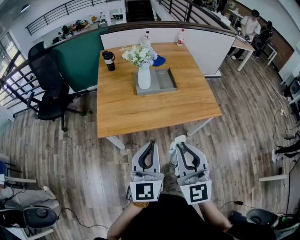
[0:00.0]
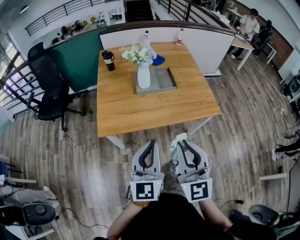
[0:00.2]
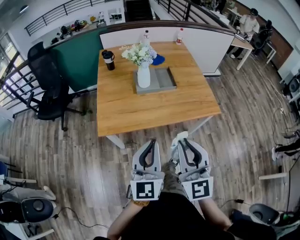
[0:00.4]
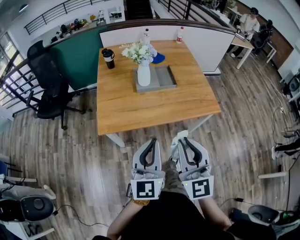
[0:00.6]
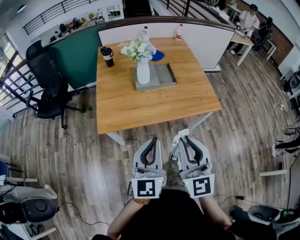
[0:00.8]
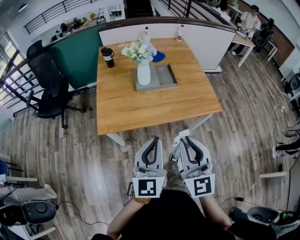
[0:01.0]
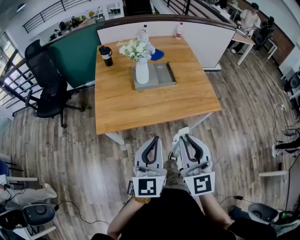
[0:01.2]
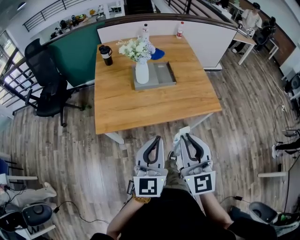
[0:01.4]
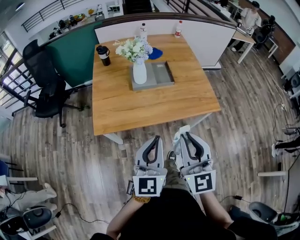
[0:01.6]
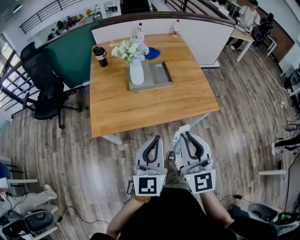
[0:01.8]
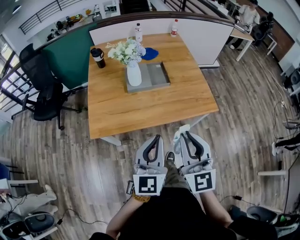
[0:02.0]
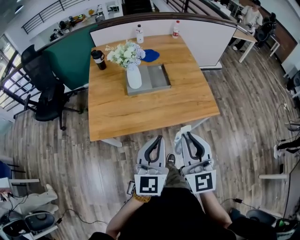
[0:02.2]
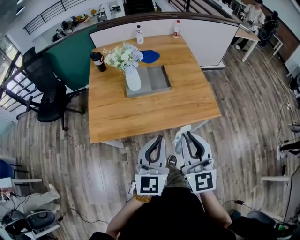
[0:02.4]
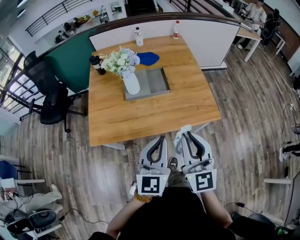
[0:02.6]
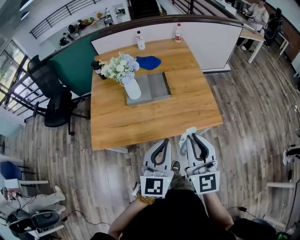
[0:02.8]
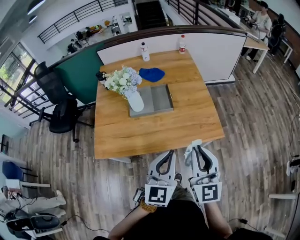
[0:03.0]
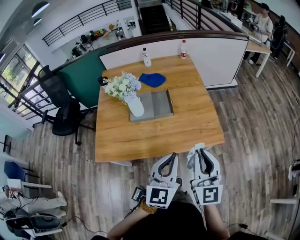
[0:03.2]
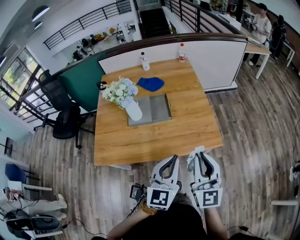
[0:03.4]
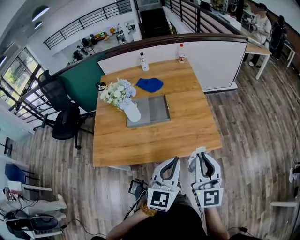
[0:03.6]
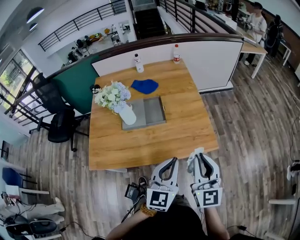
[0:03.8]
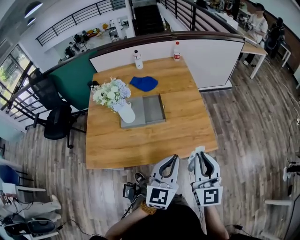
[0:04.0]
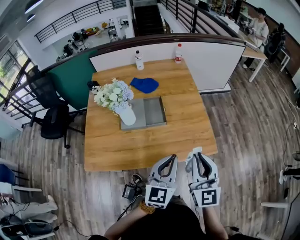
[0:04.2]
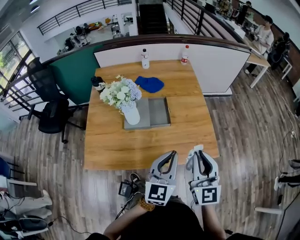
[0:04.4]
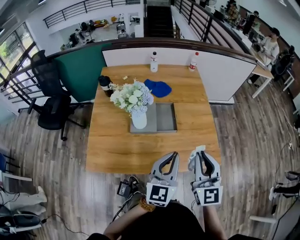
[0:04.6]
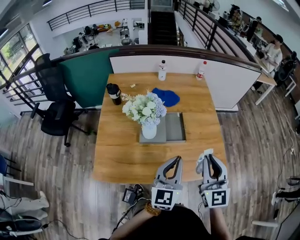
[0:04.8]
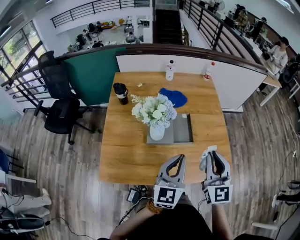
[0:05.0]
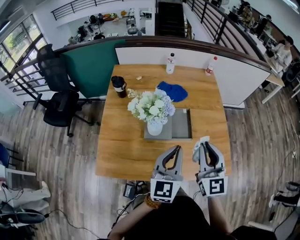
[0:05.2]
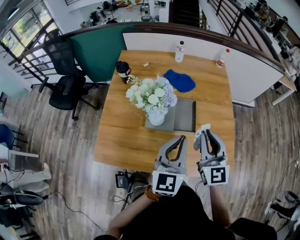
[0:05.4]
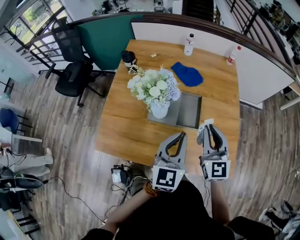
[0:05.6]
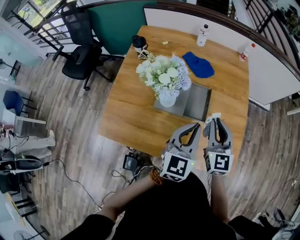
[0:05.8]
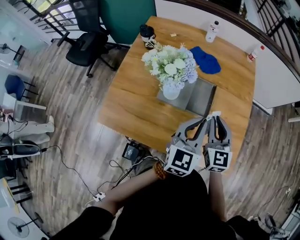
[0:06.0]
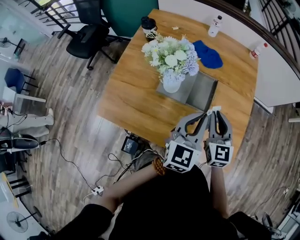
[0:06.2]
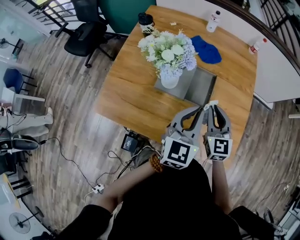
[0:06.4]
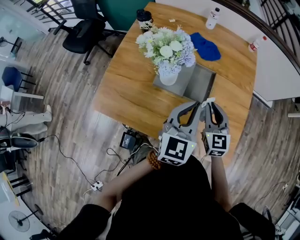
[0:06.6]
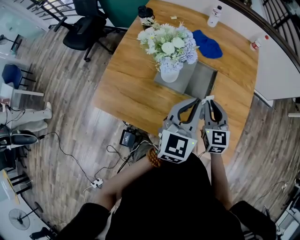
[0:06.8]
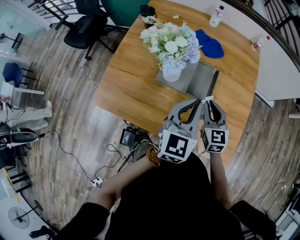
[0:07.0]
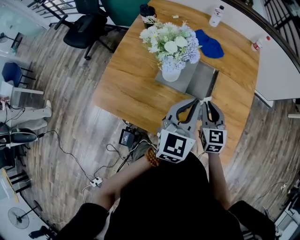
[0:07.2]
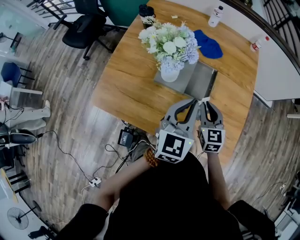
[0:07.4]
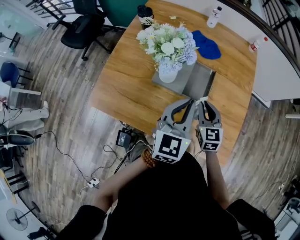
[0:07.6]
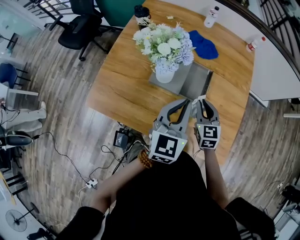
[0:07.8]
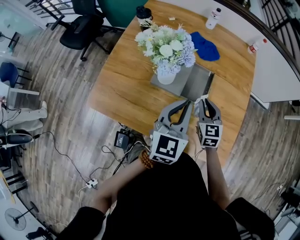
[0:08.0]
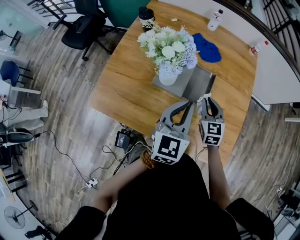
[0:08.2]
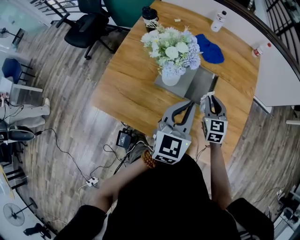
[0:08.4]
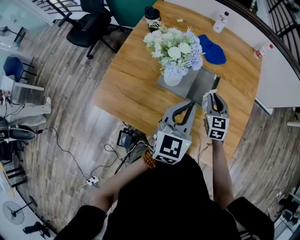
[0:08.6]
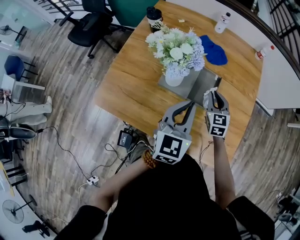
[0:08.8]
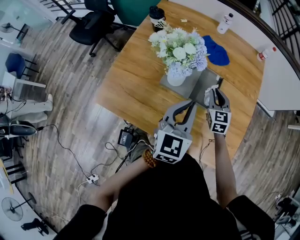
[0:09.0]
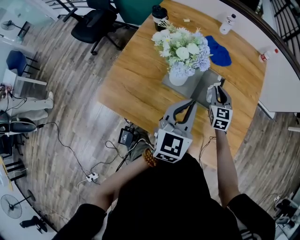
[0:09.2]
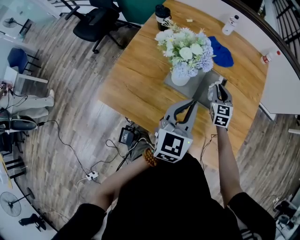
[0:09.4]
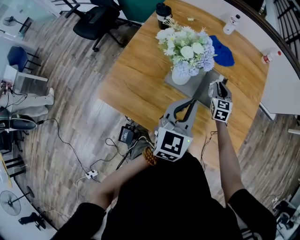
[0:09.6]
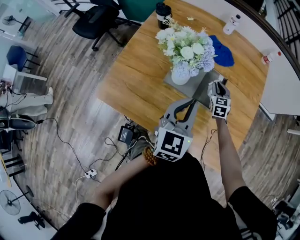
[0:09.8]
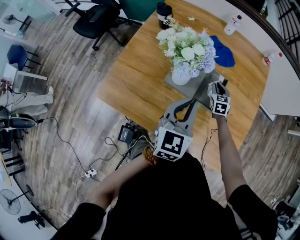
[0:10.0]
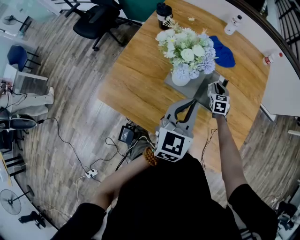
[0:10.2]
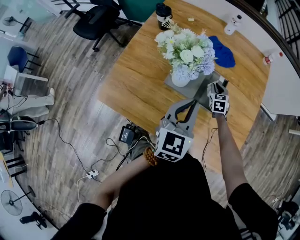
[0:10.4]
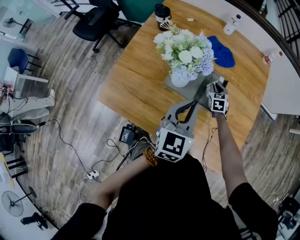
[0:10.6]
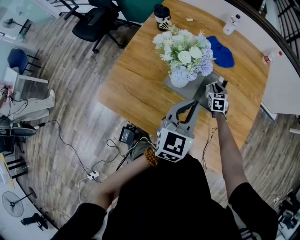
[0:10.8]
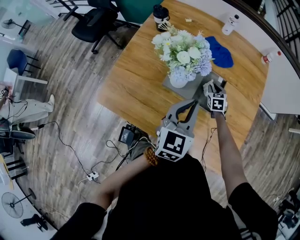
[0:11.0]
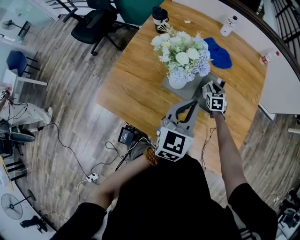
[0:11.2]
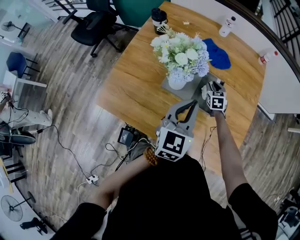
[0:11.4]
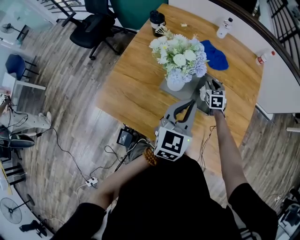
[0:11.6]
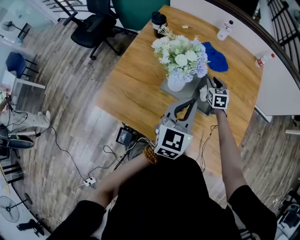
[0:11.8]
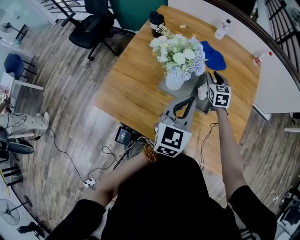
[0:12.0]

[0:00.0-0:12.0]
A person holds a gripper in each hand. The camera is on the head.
0.0 to 1.6 s: The right gripper ends up some 5 cm from where it was. Meanwhile the left gripper changes place by some 5 cm.
1.6 to 3.0 s: The grippers both shift to the right and forward by about 20 cm.
3.0 to 4.4 s: The grippers both shift forward by about 10 cm.
4.4 to 6.0 s: The left gripper goes some 20 cm forward. Meanwhile the right gripper travels forward and downward by some 25 cm, and rotates some 20 degrees.
6.0 to 7.6 s: The right gripper heads downward, covering about 10 cm.
7.6 to 9.0 s: The right gripper goes approximately 10 cm forward.
9.0 to 10.4 s: The right gripper travels downward and forward by some 15 cm.
10.4 to 12.0 s: The right gripper travels upward by roughly 15 cm.

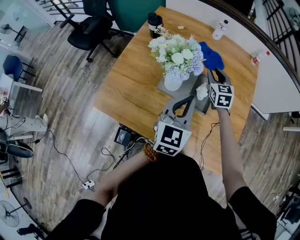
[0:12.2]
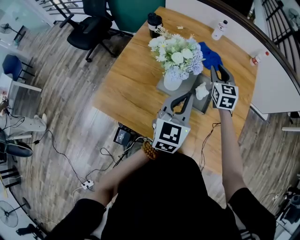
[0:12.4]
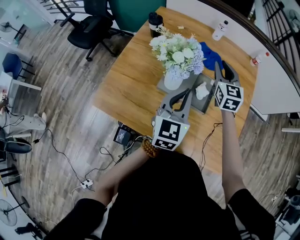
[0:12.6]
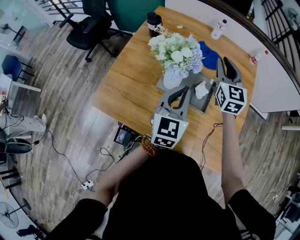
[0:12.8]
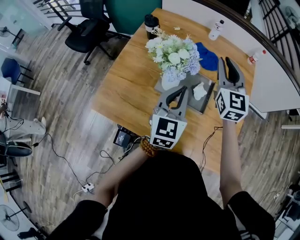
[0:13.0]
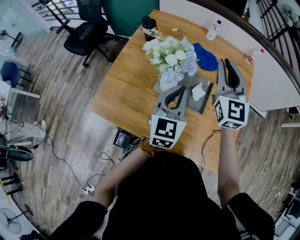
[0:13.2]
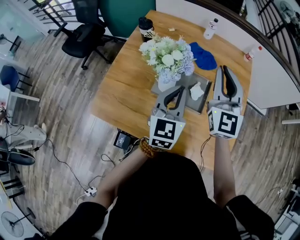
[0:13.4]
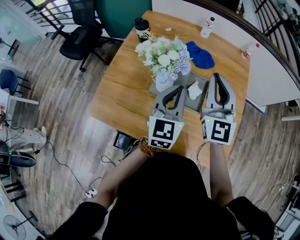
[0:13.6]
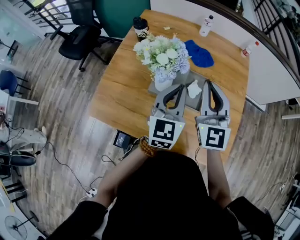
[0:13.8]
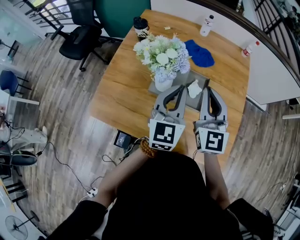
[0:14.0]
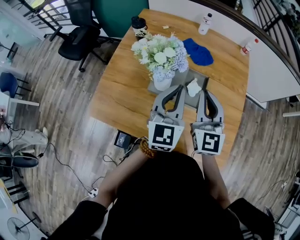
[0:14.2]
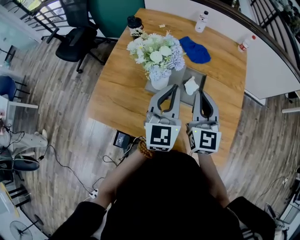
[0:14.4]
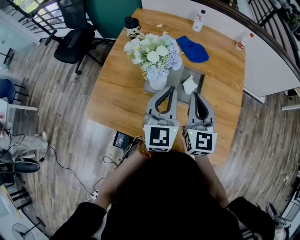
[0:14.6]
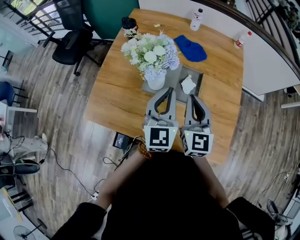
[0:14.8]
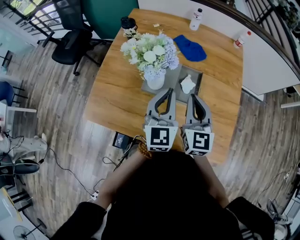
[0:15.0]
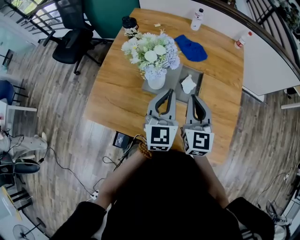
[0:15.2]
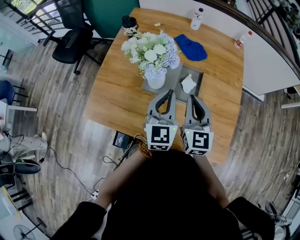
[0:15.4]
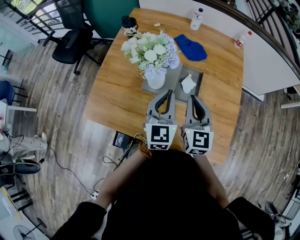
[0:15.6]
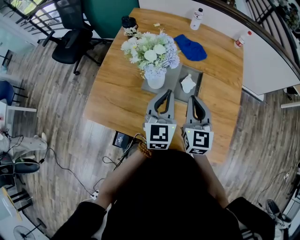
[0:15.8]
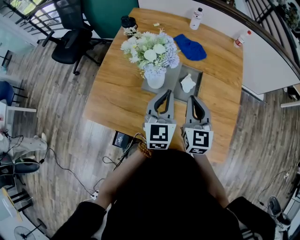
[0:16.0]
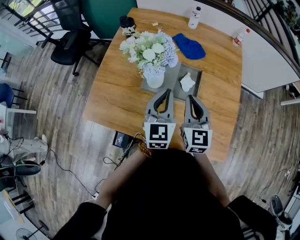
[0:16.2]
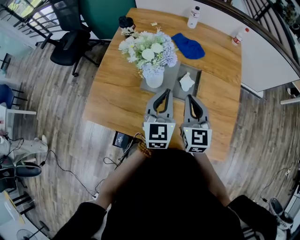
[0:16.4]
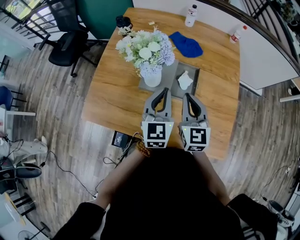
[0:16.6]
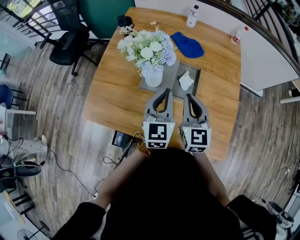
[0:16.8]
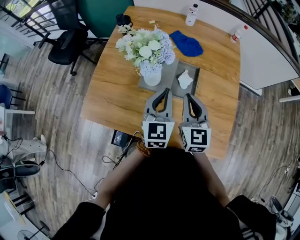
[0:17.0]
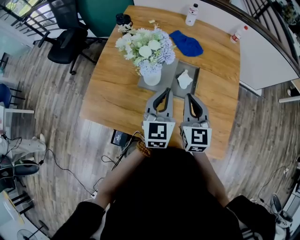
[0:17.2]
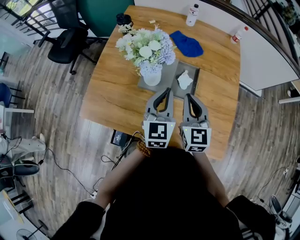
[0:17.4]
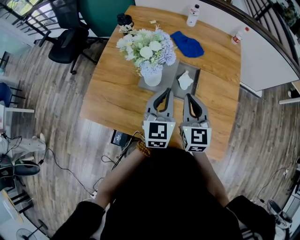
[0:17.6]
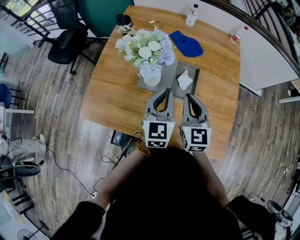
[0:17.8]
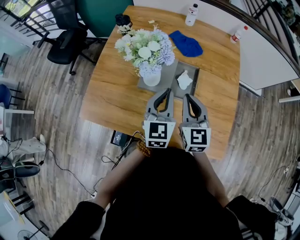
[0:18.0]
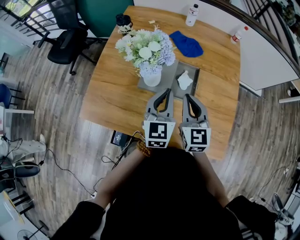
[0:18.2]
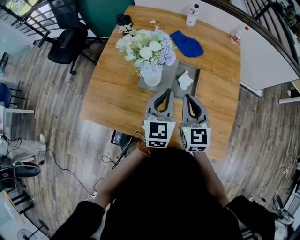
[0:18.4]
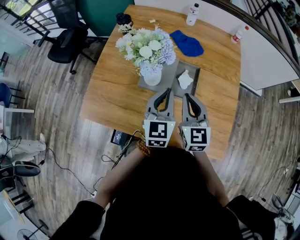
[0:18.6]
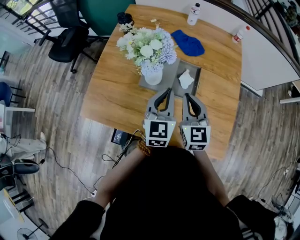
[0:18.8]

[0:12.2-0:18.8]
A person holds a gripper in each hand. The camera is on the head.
12.2 to 13.8 s: The right gripper shifts roughly 25 cm upward and backward, angles its fingers upward, by roughly 30 degrees, and closes up.
13.8 to 15.4 s: The left gripper changes place by roughly 5 cm. The right gripper shifts some 10 cm downward.
15.4 to 18.8 s: There are only small adjustments of the grippers.

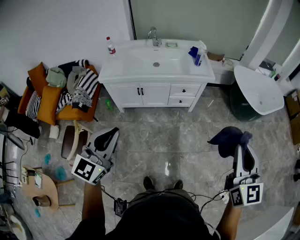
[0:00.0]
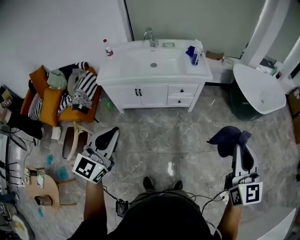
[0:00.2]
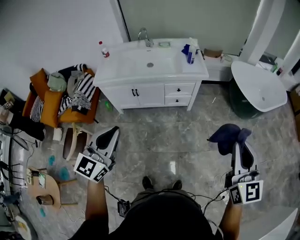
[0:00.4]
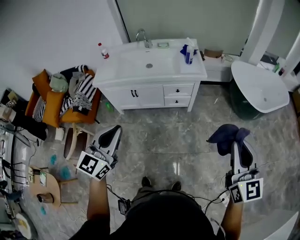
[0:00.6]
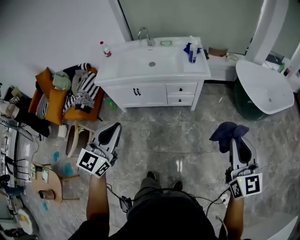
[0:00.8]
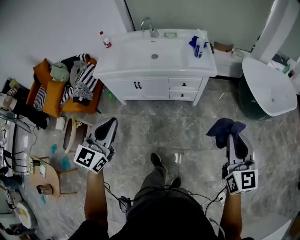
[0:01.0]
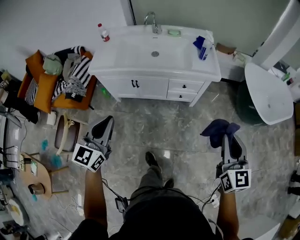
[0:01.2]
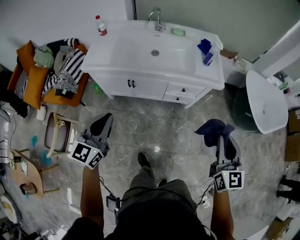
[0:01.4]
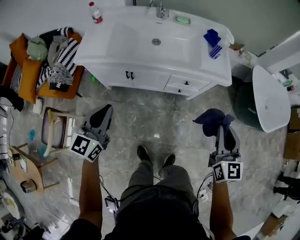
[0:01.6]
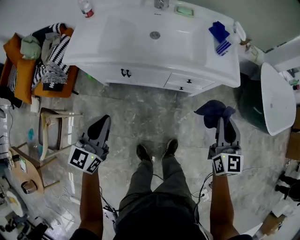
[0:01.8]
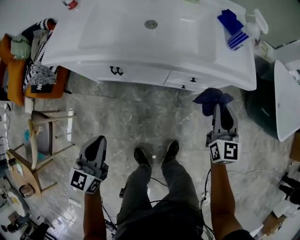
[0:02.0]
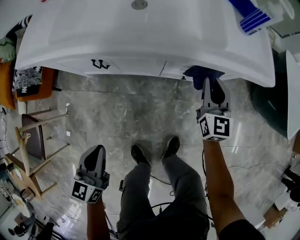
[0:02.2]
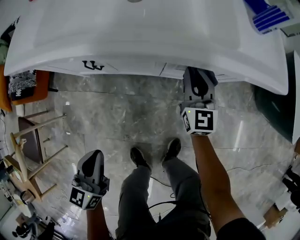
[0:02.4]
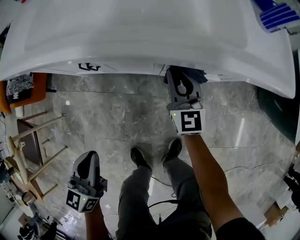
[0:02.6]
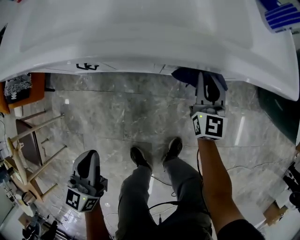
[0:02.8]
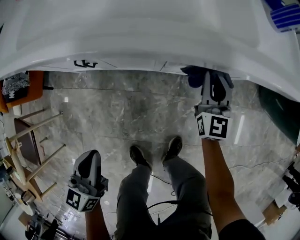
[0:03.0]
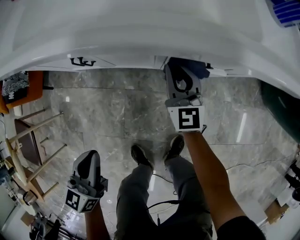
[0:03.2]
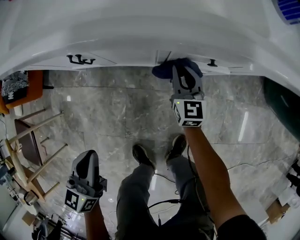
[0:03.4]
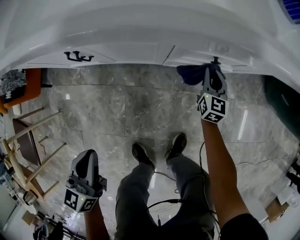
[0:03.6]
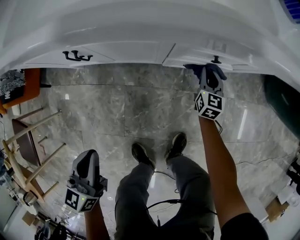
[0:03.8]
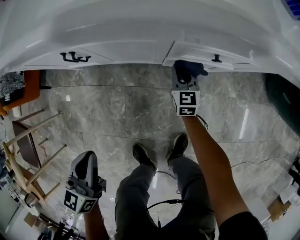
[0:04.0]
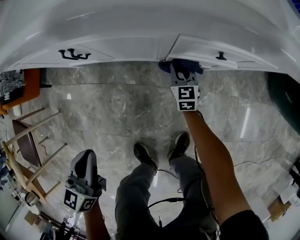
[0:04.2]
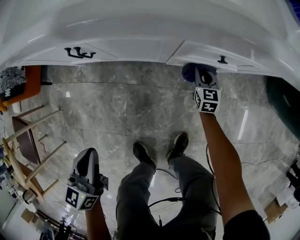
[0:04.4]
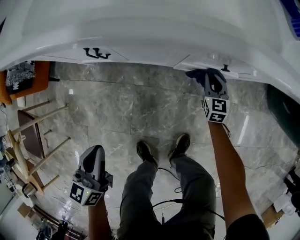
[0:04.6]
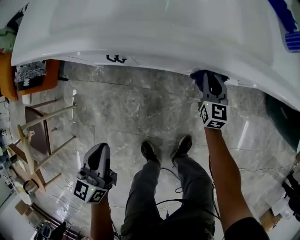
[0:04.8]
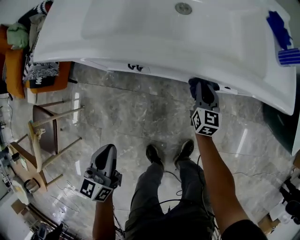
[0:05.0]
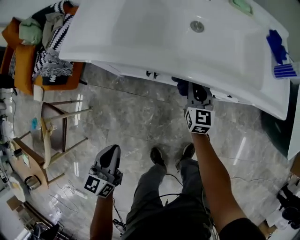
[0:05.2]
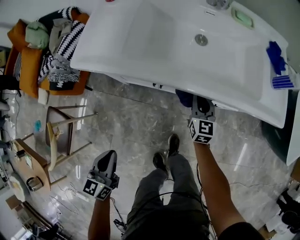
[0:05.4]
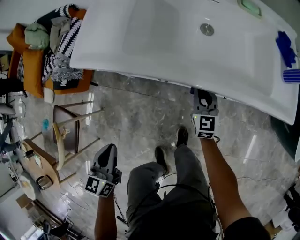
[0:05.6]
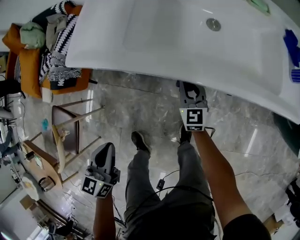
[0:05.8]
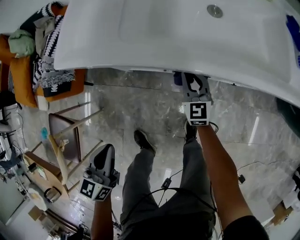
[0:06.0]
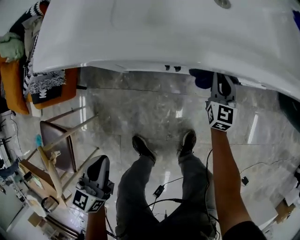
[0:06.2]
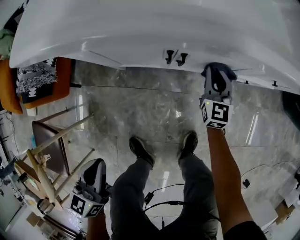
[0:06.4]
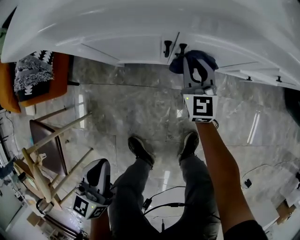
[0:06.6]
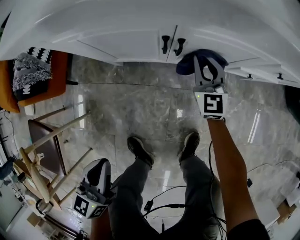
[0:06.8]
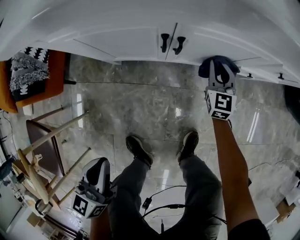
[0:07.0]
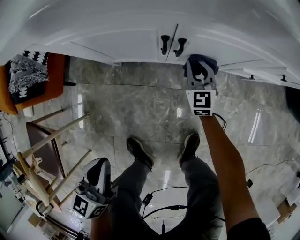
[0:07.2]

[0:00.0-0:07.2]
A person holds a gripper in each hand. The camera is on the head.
0.0 to 1.4 s: Both grippers travel together forward and downward, some 30 cm.
1.4 to 2.8 s: The right gripper travels downward and forward by roughly 60 cm. The left gripper shifts some 35 cm downward, and turns by roughly 20 degrees.
2.8 to 4.4 s: The right gripper travels downward by some 25 cm, and turns by approximately 20 degrees. The left gripper is displaced downward by approximately 5 cm.
4.4 to 5.8 s: The right gripper moves to the left and upward, about 50 cm, and turns by about 20 degrees, while the left gripper heads to the left and upward, covering roughly 25 cm.
5.8 to 7.2 s: The two grippers go approximately 20 cm downward.
